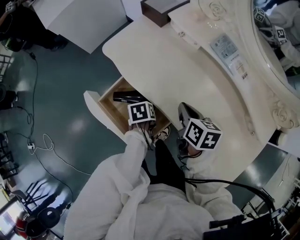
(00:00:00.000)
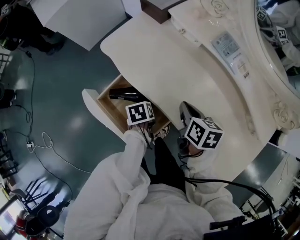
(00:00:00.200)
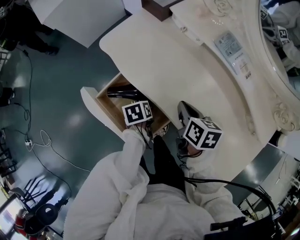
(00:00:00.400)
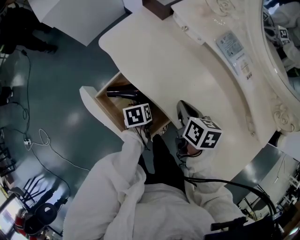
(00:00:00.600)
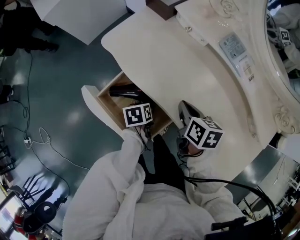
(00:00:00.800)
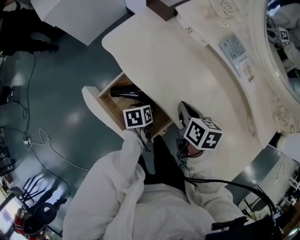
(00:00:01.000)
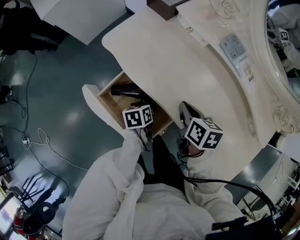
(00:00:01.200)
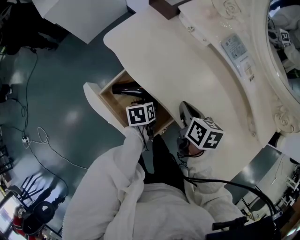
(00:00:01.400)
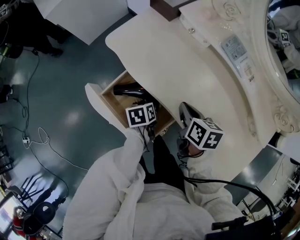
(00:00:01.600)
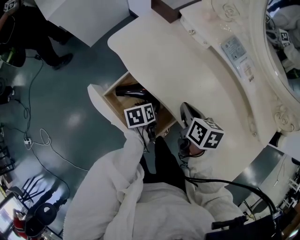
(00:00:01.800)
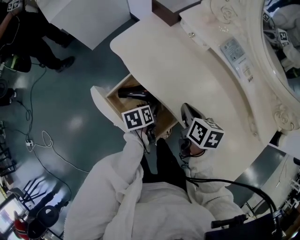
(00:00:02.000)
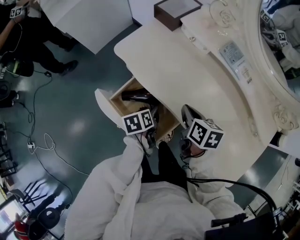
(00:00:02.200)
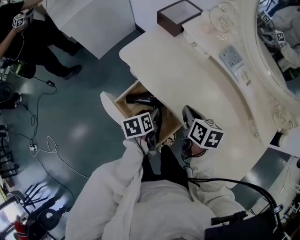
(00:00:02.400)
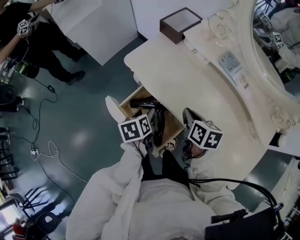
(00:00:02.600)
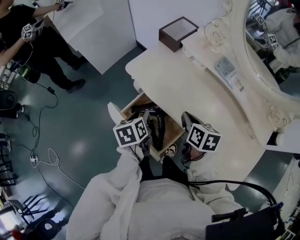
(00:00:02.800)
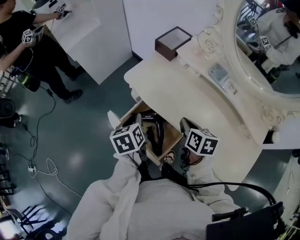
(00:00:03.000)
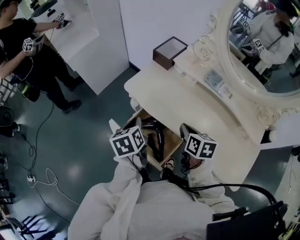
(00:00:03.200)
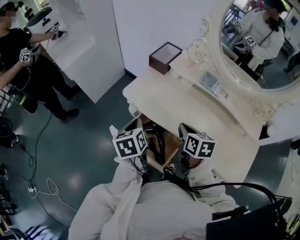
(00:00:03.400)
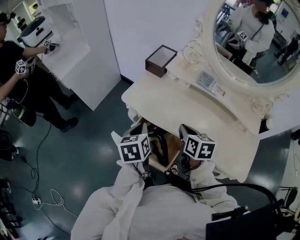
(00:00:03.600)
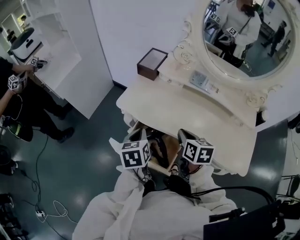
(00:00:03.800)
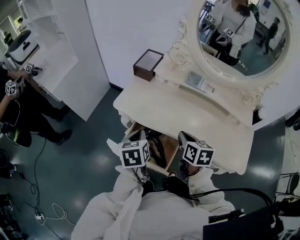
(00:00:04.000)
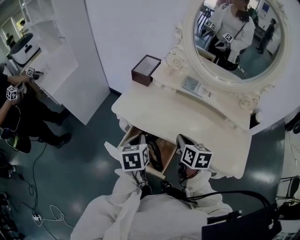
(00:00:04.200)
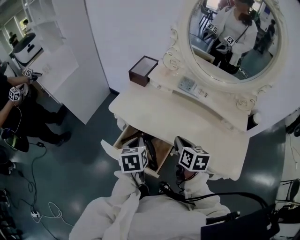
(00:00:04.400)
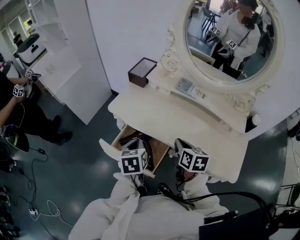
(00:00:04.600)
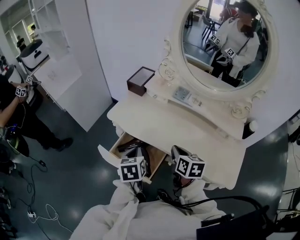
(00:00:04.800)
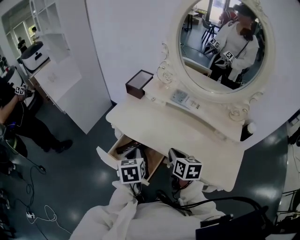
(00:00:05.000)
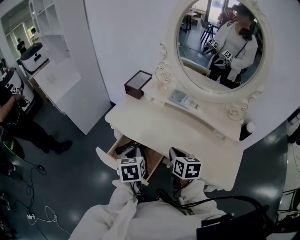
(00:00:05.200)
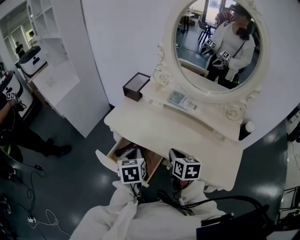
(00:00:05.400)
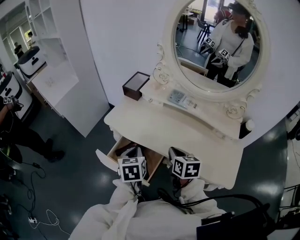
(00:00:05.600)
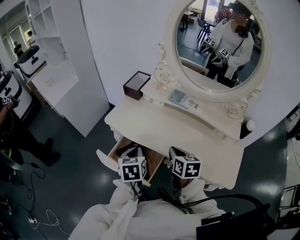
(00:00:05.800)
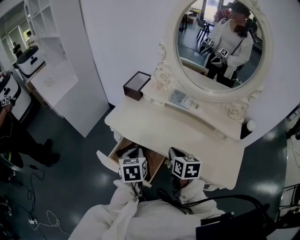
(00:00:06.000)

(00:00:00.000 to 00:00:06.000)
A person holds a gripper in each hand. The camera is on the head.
00:00:00.000 - 00:00:01.600: The grippers stay close to where they were, moving slightly.
00:00:01.600 - 00:00:03.000: The left gripper is displaced upward and to the left by some 25 cm, swivels about 20 degrees, and closes up; the right gripper shifts about 10 cm upward.
00:00:03.000 - 00:00:04.400: The right gripper travels backward by about 5 cm, while the left gripper shifts about 5 cm to the right, and rotates approximately 30 degrees.
00:00:04.400 - 00:00:06.000: The grippers make only small movements.

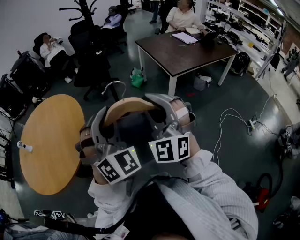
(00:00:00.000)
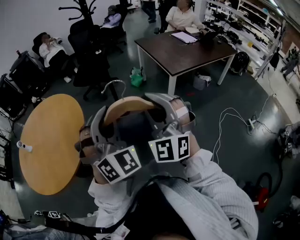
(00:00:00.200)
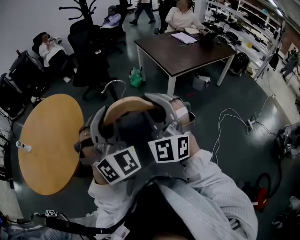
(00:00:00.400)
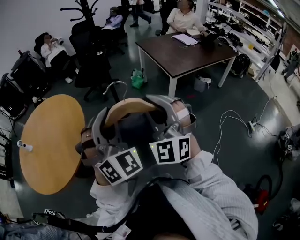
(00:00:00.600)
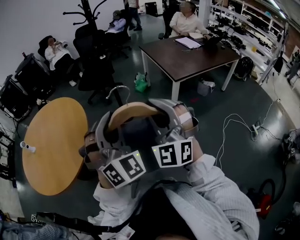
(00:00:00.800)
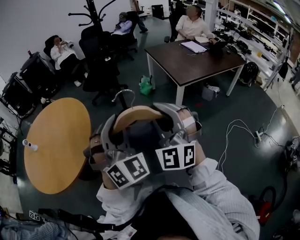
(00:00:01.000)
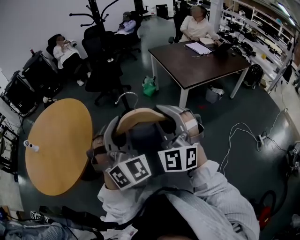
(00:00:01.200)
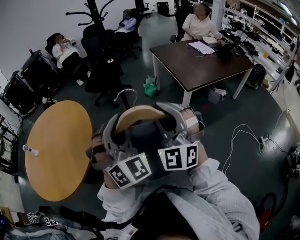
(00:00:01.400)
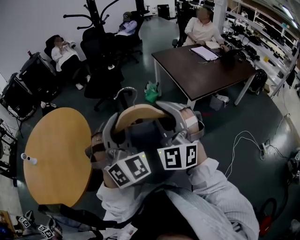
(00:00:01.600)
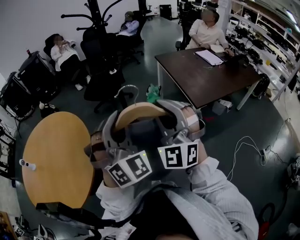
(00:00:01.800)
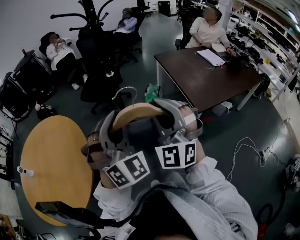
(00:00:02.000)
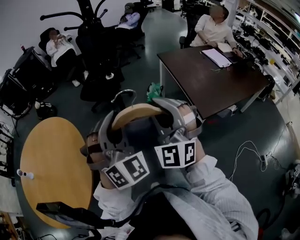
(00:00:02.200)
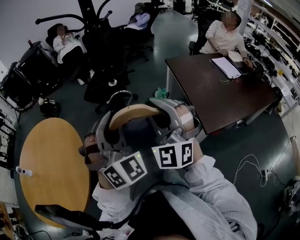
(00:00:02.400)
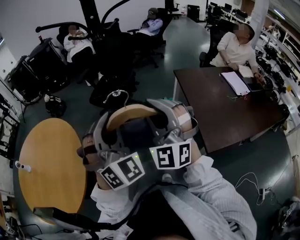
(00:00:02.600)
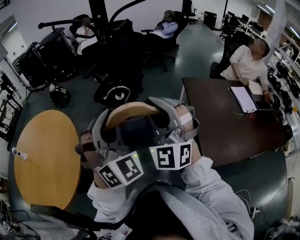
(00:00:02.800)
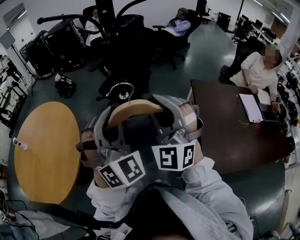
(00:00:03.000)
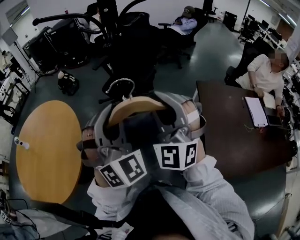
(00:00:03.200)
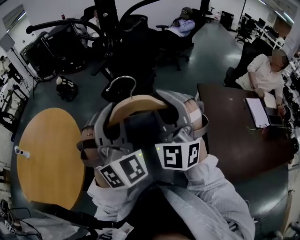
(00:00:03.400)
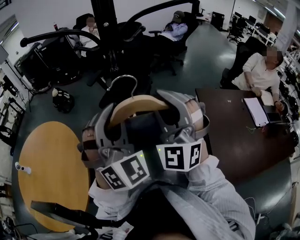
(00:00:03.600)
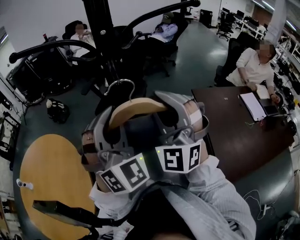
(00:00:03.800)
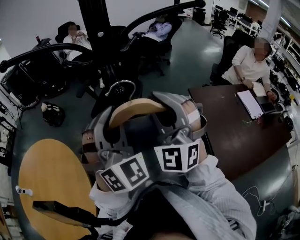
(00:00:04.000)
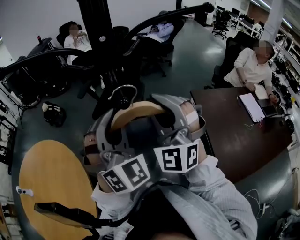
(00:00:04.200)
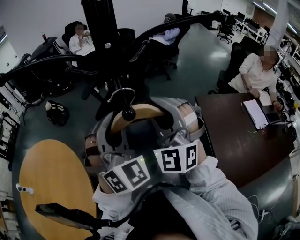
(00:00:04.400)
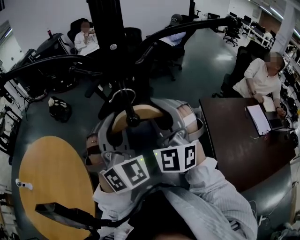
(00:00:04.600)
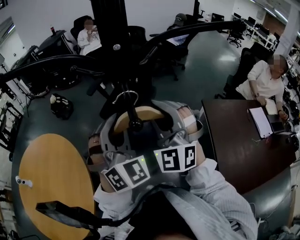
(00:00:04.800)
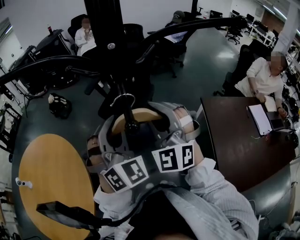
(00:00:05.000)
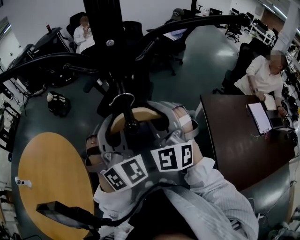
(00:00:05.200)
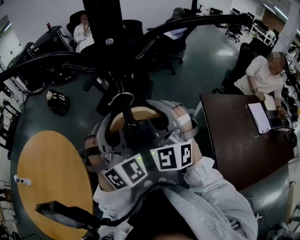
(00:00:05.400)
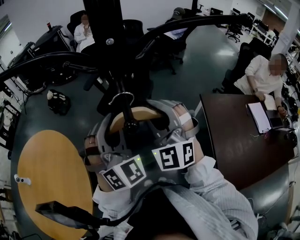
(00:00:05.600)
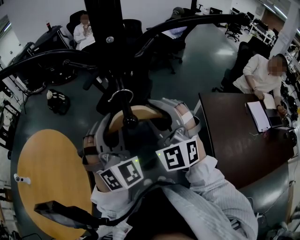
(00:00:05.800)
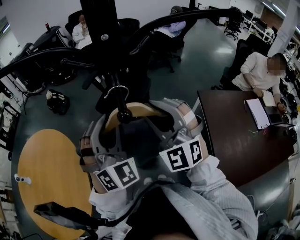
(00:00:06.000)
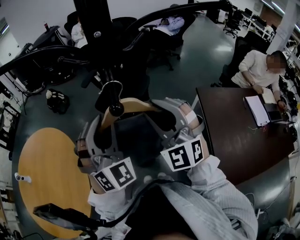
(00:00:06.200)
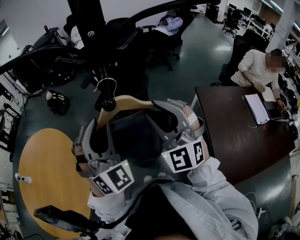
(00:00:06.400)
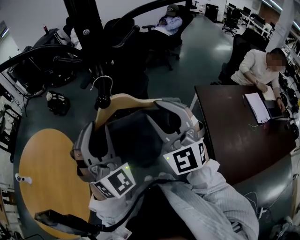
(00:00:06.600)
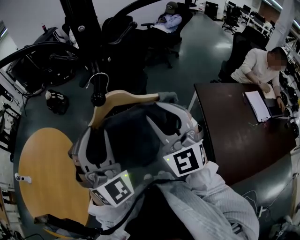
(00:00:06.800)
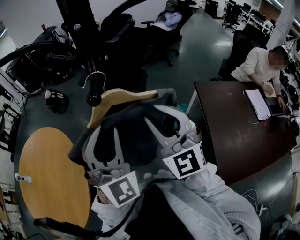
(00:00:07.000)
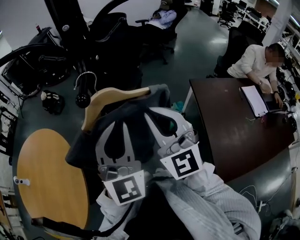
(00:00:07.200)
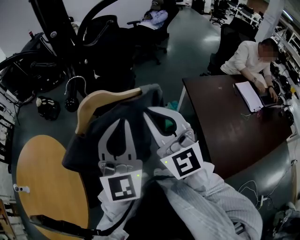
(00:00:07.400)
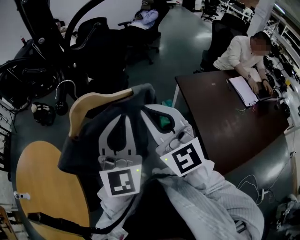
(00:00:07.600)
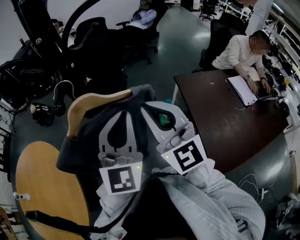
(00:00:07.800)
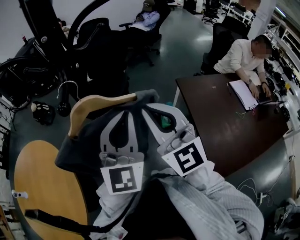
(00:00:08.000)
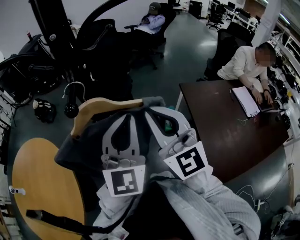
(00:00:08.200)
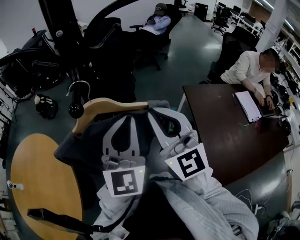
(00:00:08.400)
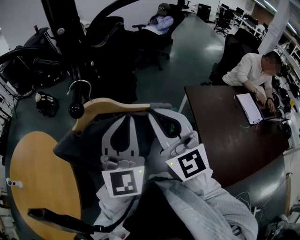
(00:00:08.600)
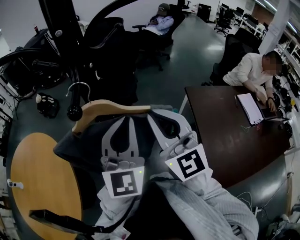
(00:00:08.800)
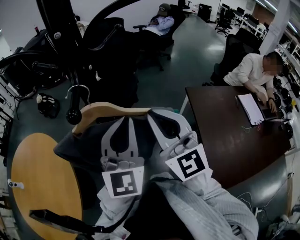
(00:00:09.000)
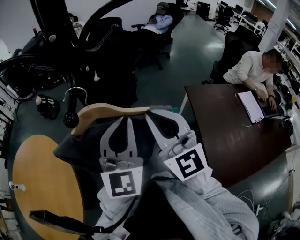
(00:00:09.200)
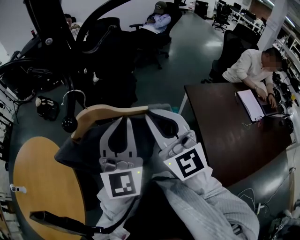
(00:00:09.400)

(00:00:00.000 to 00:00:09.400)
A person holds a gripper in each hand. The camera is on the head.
00:00:00.000 - 00:00:01.600: The two grippers go approximately 20 cm forward.
00:00:01.600 - 00:00:03.200: The two grippers travel together, roughly 50 cm. The right gripper turns by approximately 30 degrees, while the left gripper turns by about 30 degrees.
00:00:03.200 - 00:00:04.800: The two grippers go about 20 cm forward.
00:00:04.800 - 00:00:06.200: The right gripper changes place by roughly 5 cm.
00:00:06.200 - 00:00:07.800: The right gripper travels to the right and backward by about 10 cm, turns by approximately 30 degrees, and closes up; the left gripper shifts some 15 cm to the right, twists approximately 40 degrees counterclockwise, seen from behind, and closes its fingers.
00:00:07.800 - 00:00:09.400: The grippers stay close to where they were, moving slightly.

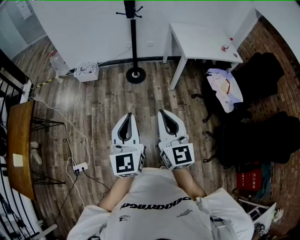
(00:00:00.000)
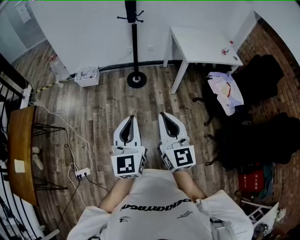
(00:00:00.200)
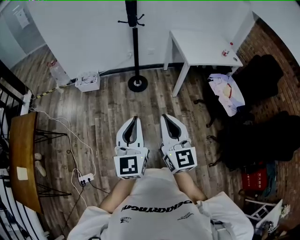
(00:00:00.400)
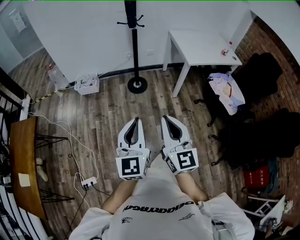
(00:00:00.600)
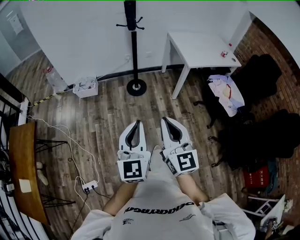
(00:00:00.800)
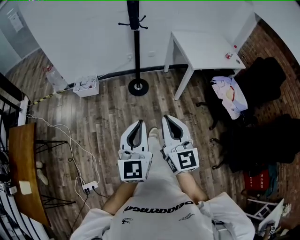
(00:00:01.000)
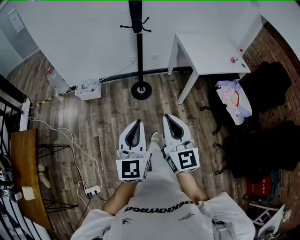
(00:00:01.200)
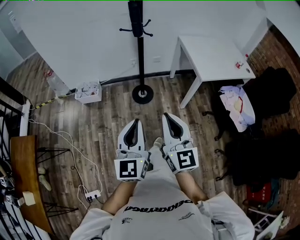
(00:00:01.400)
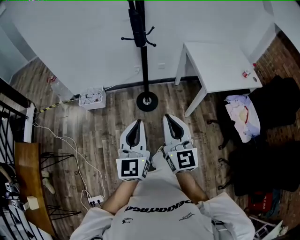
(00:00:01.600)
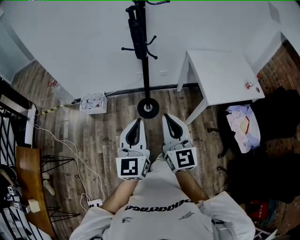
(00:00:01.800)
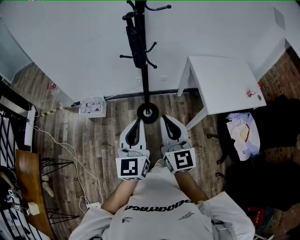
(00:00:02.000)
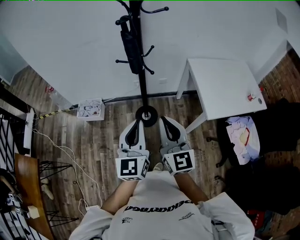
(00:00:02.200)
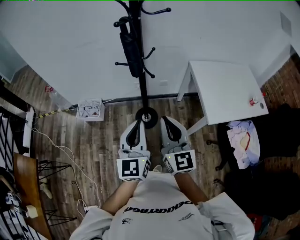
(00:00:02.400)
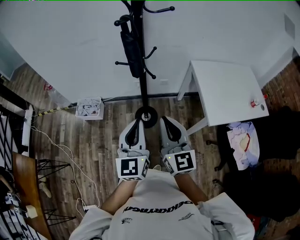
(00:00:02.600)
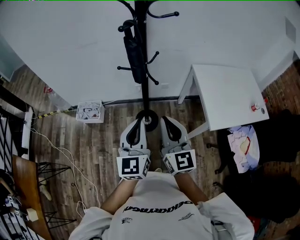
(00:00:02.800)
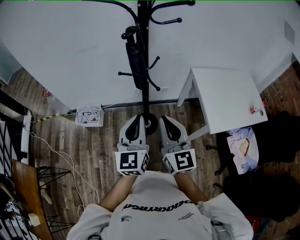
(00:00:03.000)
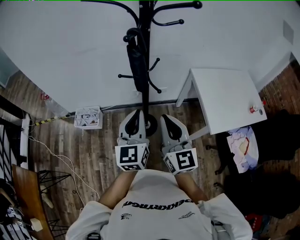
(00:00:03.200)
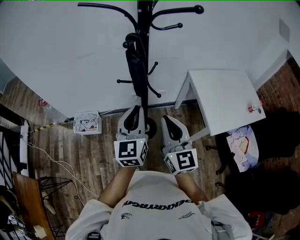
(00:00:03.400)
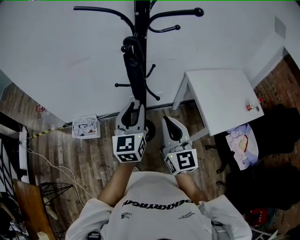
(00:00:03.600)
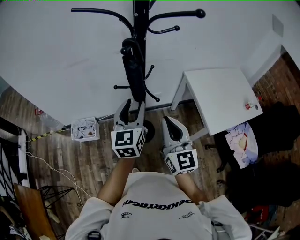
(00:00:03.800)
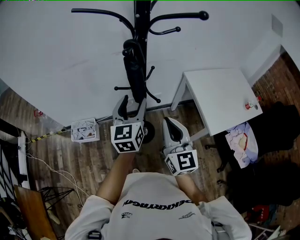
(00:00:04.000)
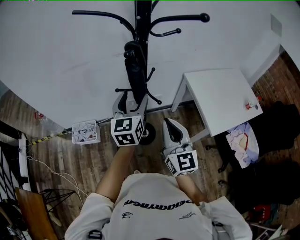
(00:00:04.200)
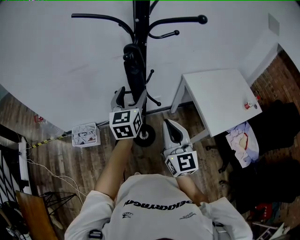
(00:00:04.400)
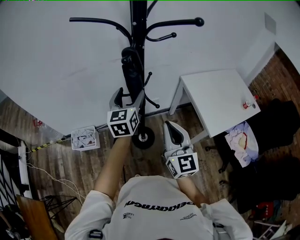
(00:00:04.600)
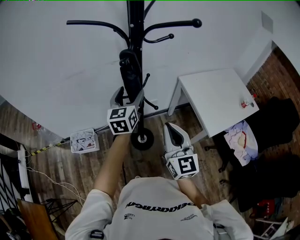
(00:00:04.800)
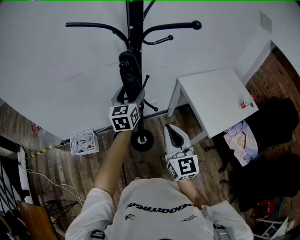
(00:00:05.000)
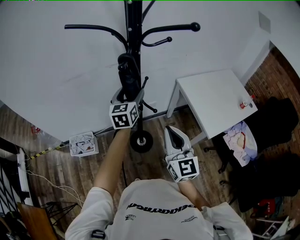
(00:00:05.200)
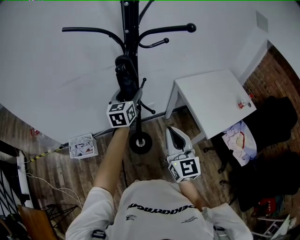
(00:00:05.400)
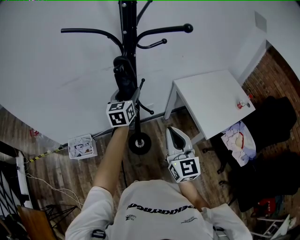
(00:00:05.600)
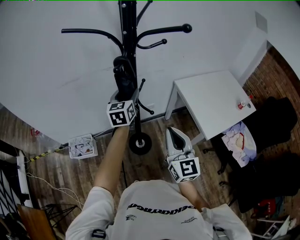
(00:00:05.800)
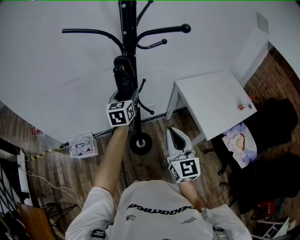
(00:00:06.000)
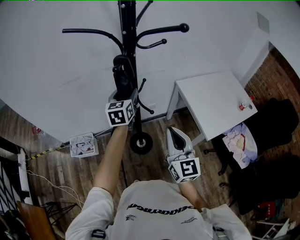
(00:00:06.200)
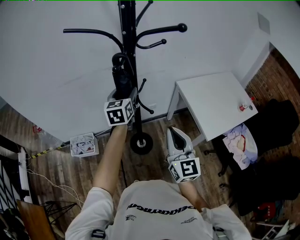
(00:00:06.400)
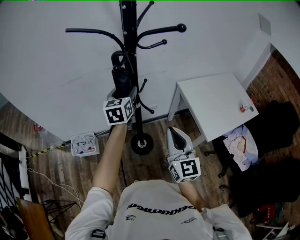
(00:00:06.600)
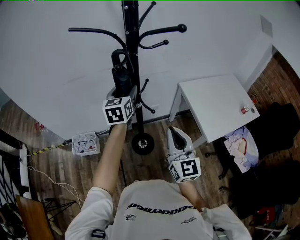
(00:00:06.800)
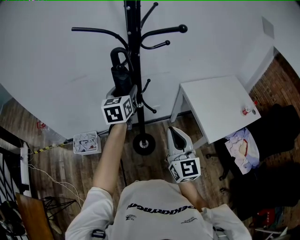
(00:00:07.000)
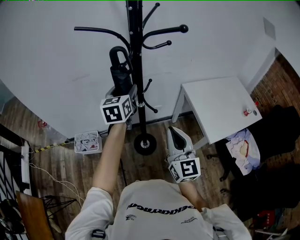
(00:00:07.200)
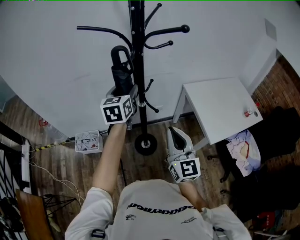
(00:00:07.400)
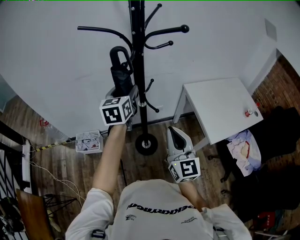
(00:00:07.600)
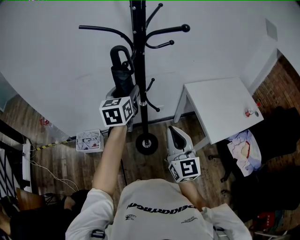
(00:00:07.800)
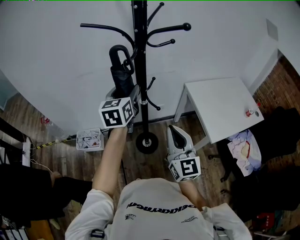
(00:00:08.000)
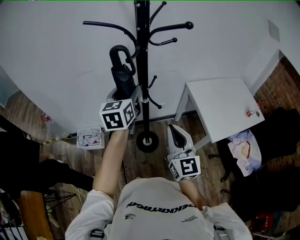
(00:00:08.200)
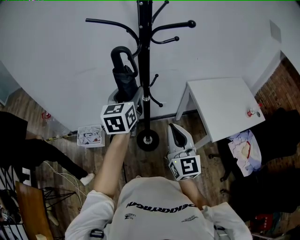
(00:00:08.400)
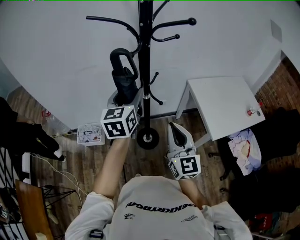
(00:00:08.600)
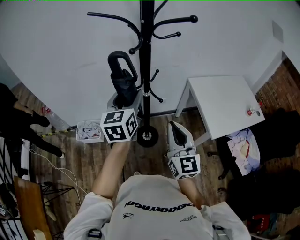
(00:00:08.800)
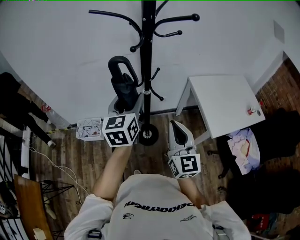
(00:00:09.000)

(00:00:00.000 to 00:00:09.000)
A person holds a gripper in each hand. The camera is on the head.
00:00:00.000 - 00:00:01.600: The grippers both shift forward by about 40 cm.
00:00:01.600 - 00:00:03.000: The two grippers go roughly 35 cm forward.
00:00:03.000 - 00:00:04.400: The right gripper travels forward by roughly 5 cm; the left gripper goes about 20 cm forward, and opens up.
00:00:04.400 - 00:00:06.000: The left gripper is displaced forward by some 5 cm.
00:00:06.000 - 00:00:07.600: The left gripper heads upward and backward, covering some 10 cm.
00:00:07.600 - 00:00:09.000: The left gripper shifts roughly 10 cm backward.
